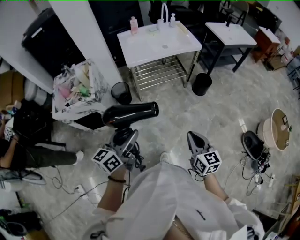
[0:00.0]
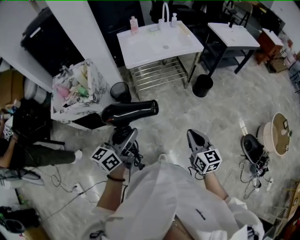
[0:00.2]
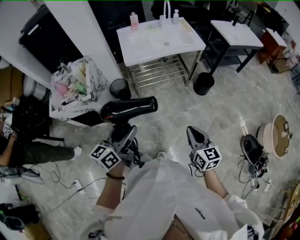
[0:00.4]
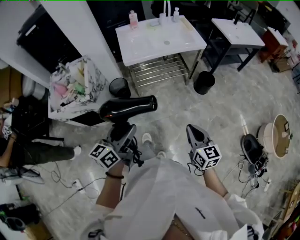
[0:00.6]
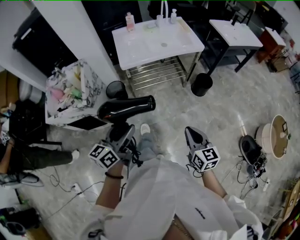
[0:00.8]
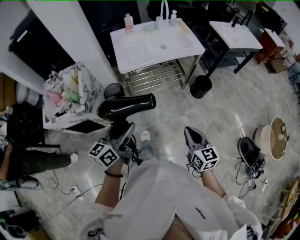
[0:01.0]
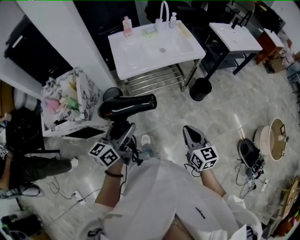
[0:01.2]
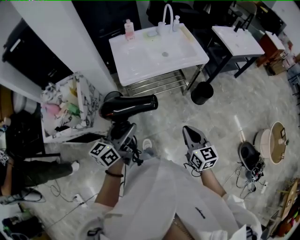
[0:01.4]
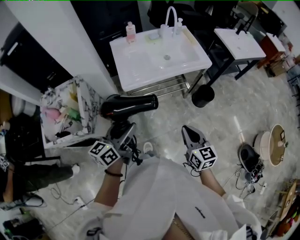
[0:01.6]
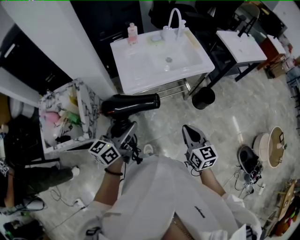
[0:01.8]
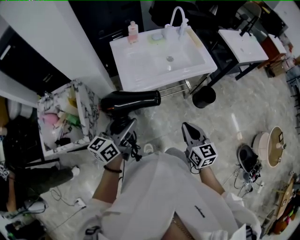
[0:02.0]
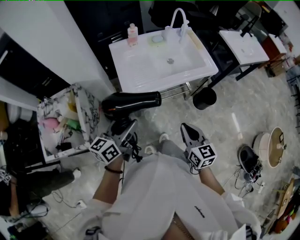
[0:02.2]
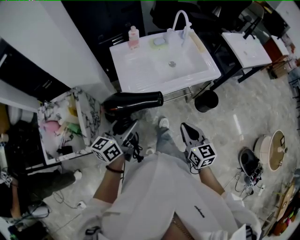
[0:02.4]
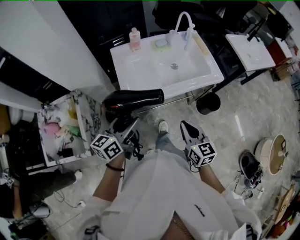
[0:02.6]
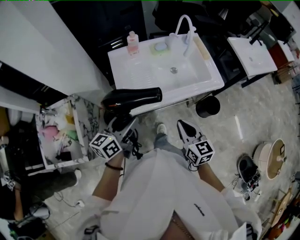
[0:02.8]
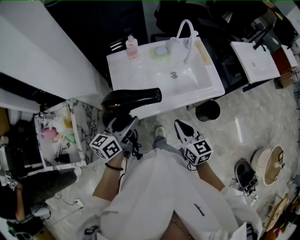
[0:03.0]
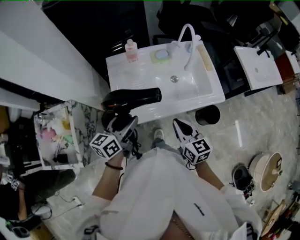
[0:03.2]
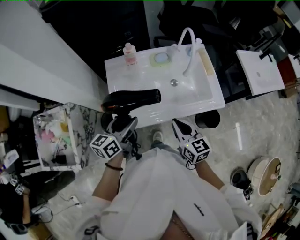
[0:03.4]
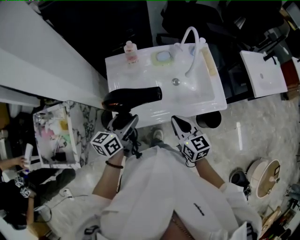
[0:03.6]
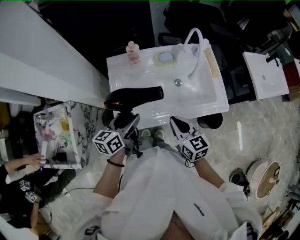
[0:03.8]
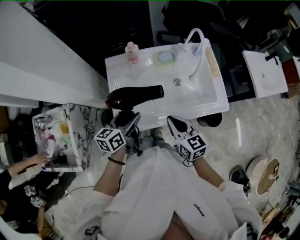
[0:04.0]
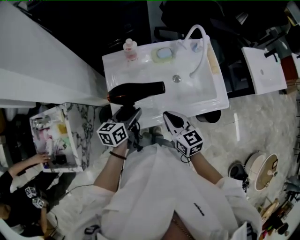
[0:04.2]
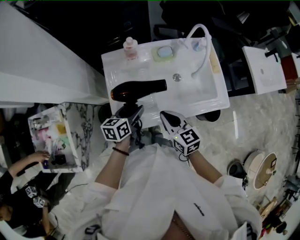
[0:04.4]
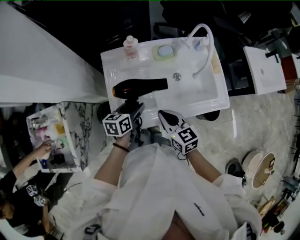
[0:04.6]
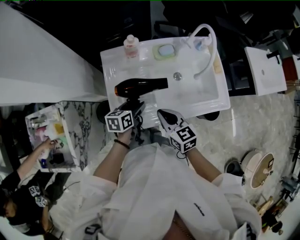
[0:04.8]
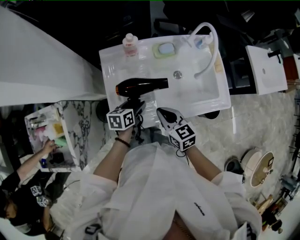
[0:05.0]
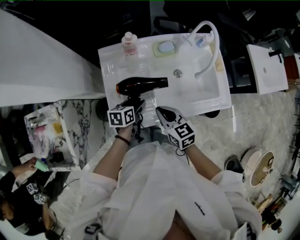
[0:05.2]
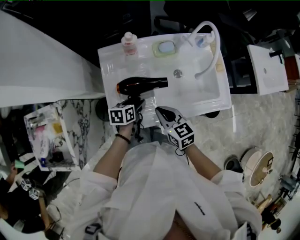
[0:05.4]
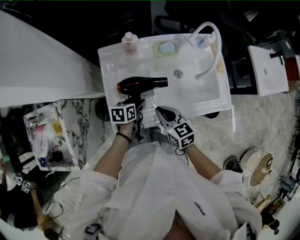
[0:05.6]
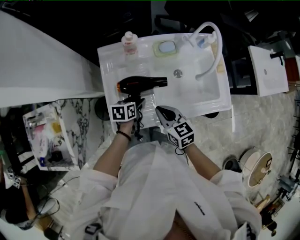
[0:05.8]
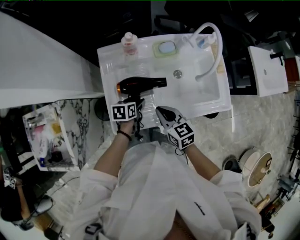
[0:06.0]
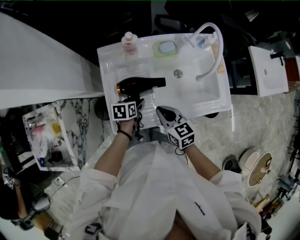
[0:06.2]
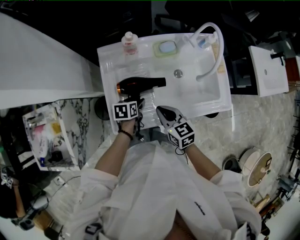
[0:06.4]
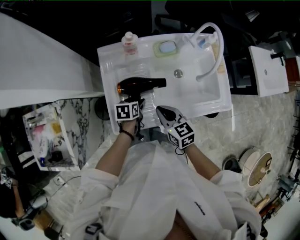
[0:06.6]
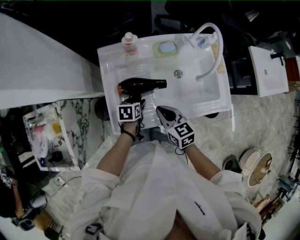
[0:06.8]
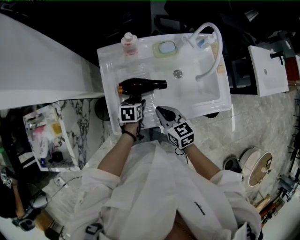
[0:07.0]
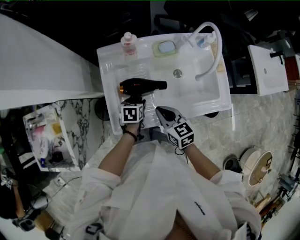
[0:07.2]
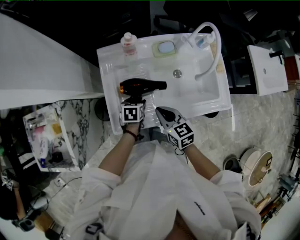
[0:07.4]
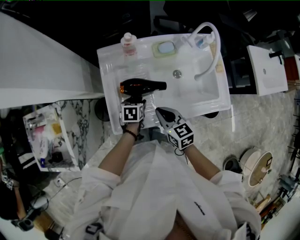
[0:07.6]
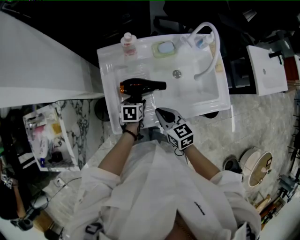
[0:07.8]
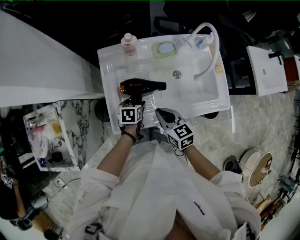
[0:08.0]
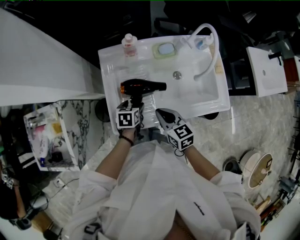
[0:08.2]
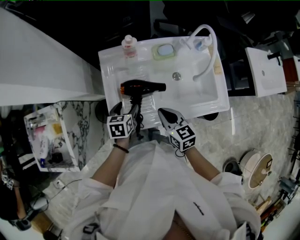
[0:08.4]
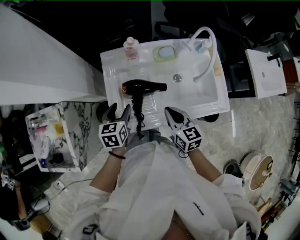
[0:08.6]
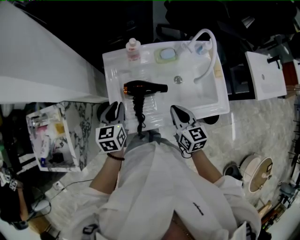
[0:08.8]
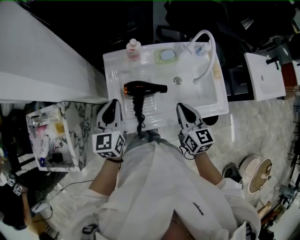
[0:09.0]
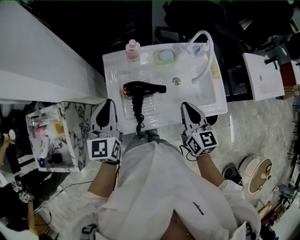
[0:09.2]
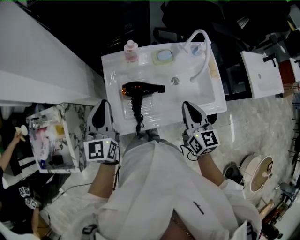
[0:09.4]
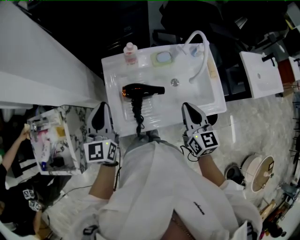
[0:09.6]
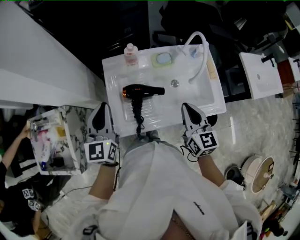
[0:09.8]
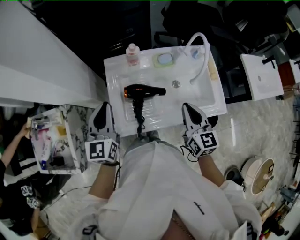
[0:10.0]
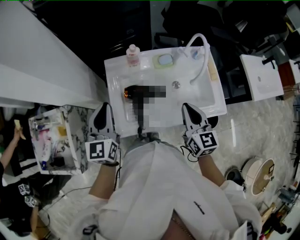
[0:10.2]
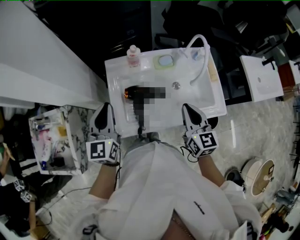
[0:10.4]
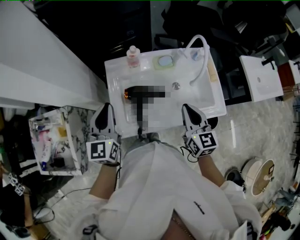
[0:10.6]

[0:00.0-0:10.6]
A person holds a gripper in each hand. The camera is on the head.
0:00.0 to 0:01.6: The two grippers go about 35 cm forward.
0:01.6 to 0:03.0: The grippers both shift forward by about 30 cm.
0:03.0 to 0:04.6: The right gripper moves forward, some 15 cm; the left gripper shifts some 25 cm forward and downward, and turns by about 20 degrees.
0:04.6 to 0:06.0: The left gripper moves downward, about 10 cm, while the right gripper moves about 5 cm.
0:06.0 to 0:07.6: The grippers stay close to where they were, moving slightly.
0:07.6 to 0:09.0: The right gripper goes roughly 10 cm upward and to the right, and turns by roughly 20 degrees, while the left gripper moves upward, approximately 25 cm, angles its fingers upward, by about 40 degrees, and closes.
0:09.0 to 0:10.6: The two grippers go about 5 cm upward.

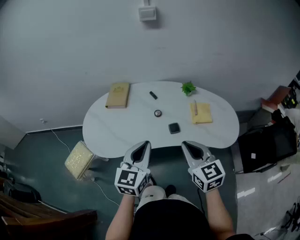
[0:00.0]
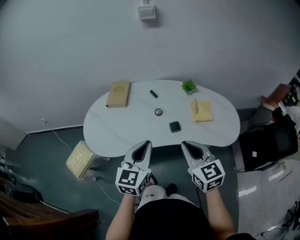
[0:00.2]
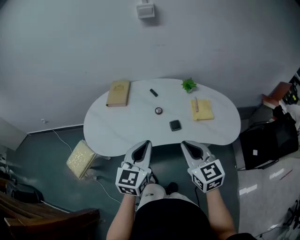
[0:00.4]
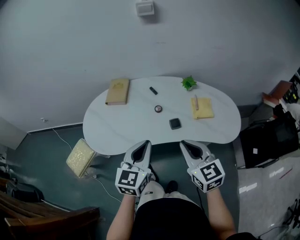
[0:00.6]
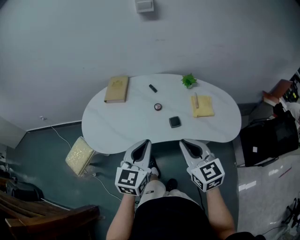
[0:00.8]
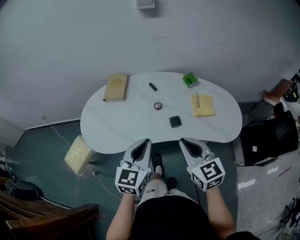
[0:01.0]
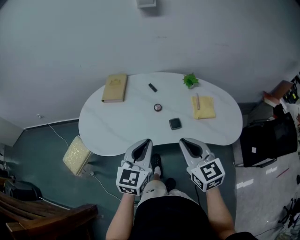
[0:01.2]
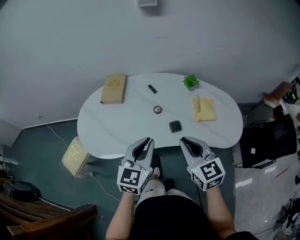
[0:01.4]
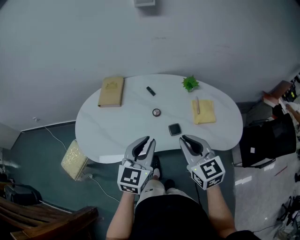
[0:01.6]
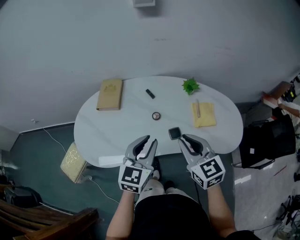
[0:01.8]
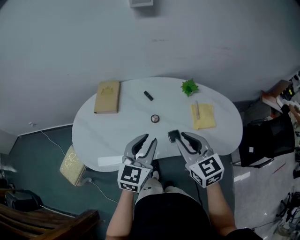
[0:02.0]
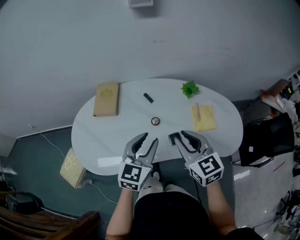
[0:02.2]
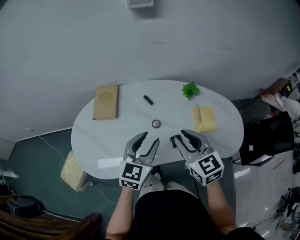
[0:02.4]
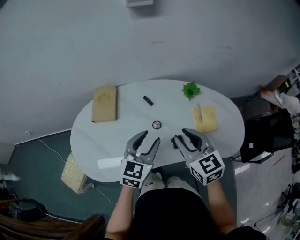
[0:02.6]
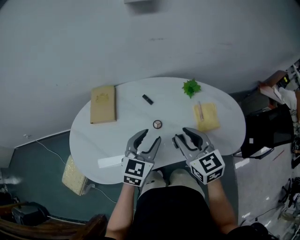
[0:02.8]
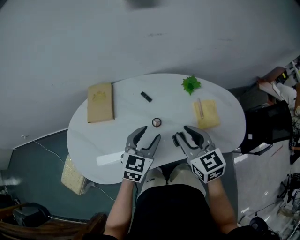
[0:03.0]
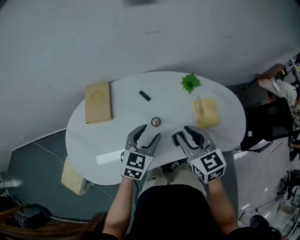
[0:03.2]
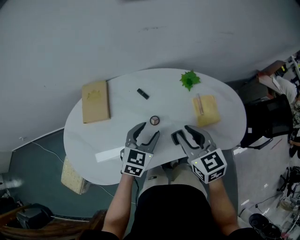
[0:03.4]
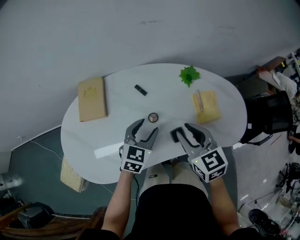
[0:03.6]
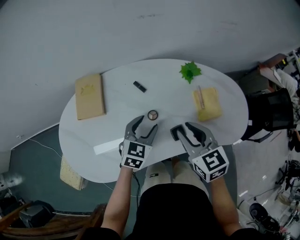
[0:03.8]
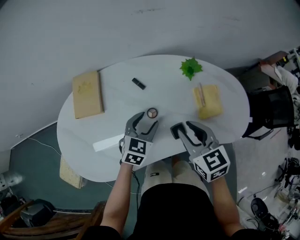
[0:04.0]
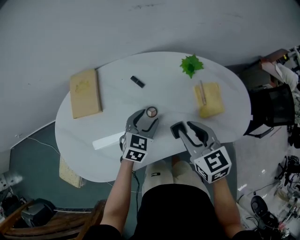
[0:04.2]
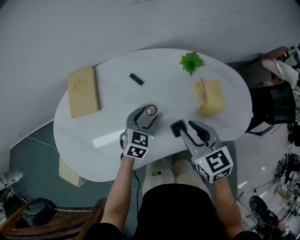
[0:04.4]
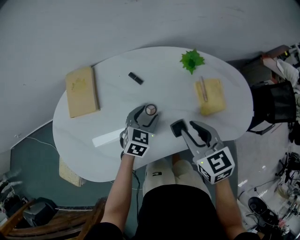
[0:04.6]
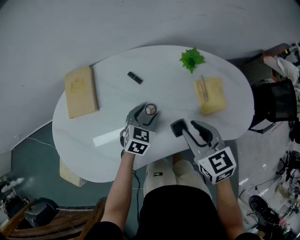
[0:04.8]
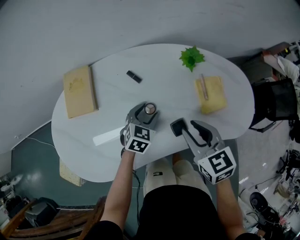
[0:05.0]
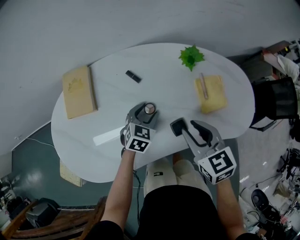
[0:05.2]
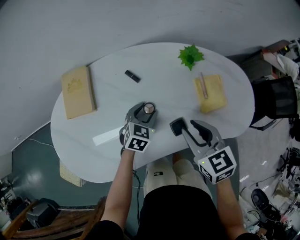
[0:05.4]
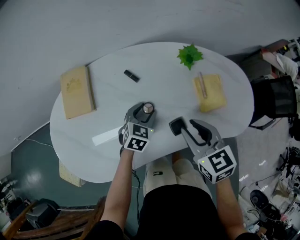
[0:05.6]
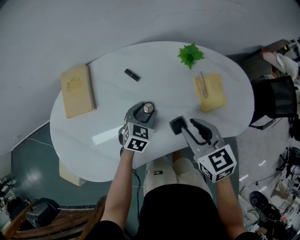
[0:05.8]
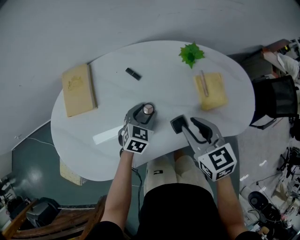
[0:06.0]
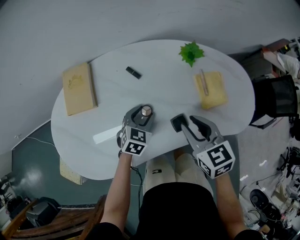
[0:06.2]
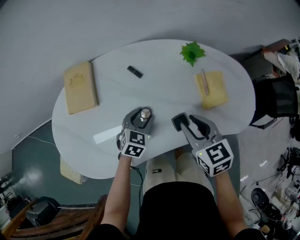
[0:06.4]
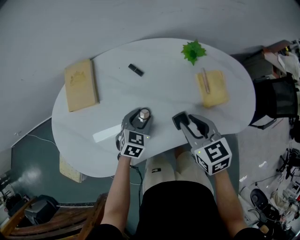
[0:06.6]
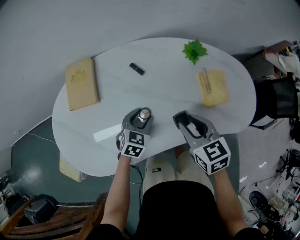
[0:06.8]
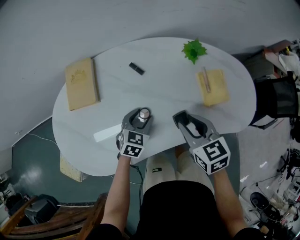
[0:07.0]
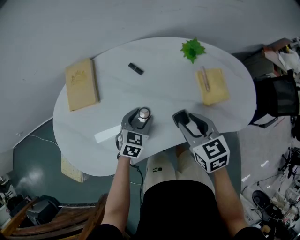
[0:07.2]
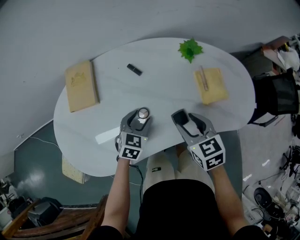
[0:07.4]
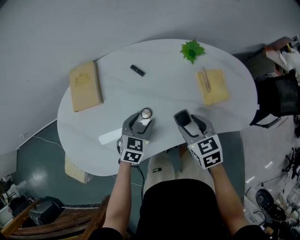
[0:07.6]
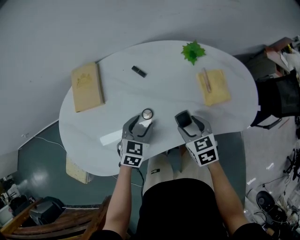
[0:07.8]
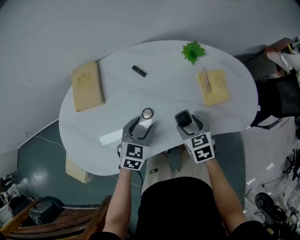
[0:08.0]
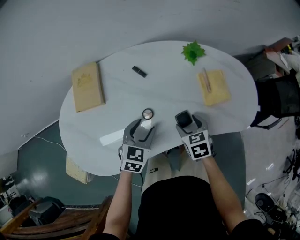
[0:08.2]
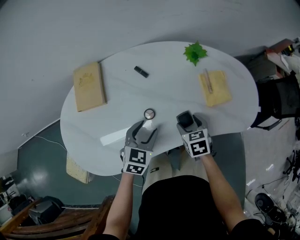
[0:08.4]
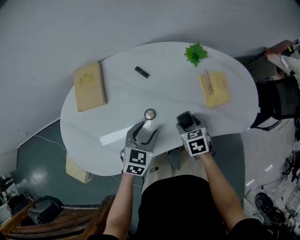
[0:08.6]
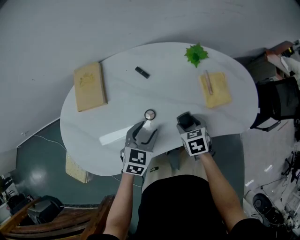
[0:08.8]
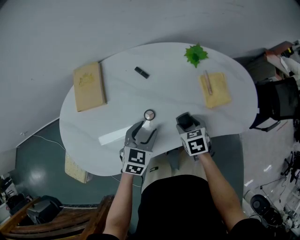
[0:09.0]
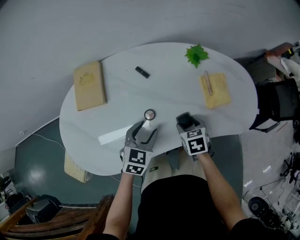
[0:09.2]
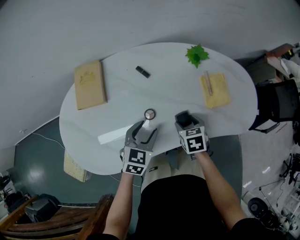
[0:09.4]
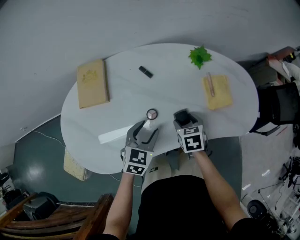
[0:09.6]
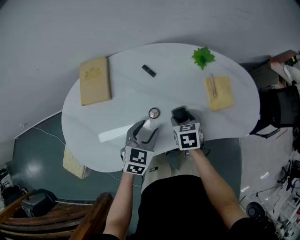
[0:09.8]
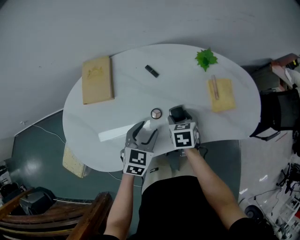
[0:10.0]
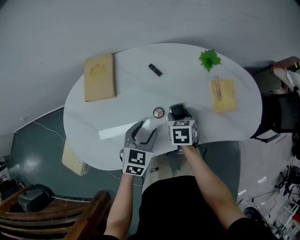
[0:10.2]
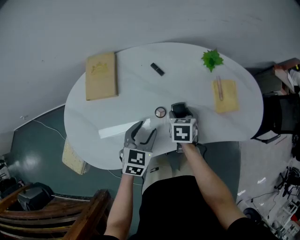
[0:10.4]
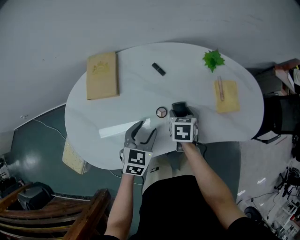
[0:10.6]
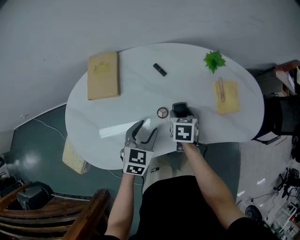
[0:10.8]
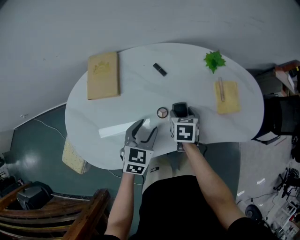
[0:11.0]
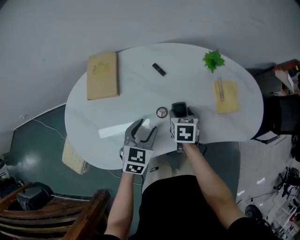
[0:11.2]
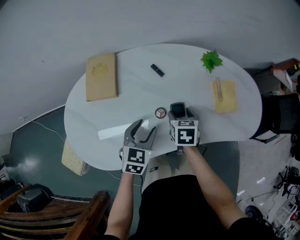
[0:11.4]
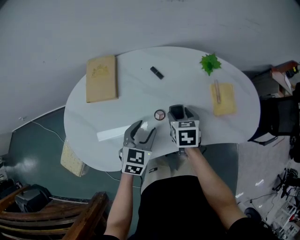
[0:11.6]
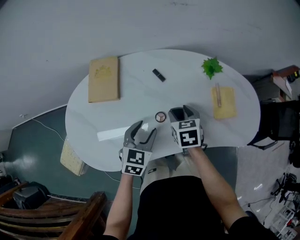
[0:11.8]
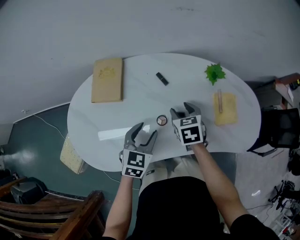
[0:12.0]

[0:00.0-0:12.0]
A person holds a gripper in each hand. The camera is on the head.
0:00.0 to 0:01.6: Both grippers move forward, some 10 cm.
0:01.6 to 0:03.0: The right gripper is displaced forward by roughly 15 cm. The left gripper moves forward and downward, approximately 15 cm, and opens.
0:03.0 to 0:04.4: The right gripper travels downward by roughly 5 cm, while the left gripper shifts roughly 15 cm downward.
0:04.4 to 0:06.0: The grippers make only small movements.
0:06.0 to 0:07.6: The right gripper moves downward, some 5 cm; the left gripper travels backward by about 5 cm.
0:07.6 to 0:09.0: The right gripper goes about 10 cm downward. The left gripper shifts by some 5 cm.
0:09.0 to 0:10.4: The right gripper moves to the left, approximately 10 cm.
0:10.4 to 0:12.0: The right gripper heads upward, covering roughly 5 cm, and swivels some 20 degrees.

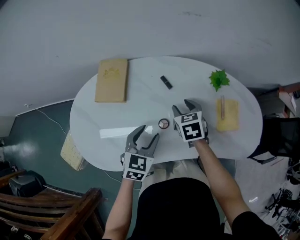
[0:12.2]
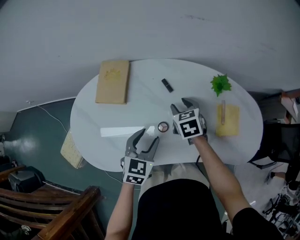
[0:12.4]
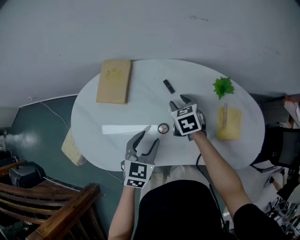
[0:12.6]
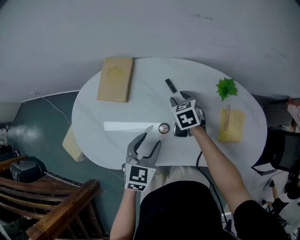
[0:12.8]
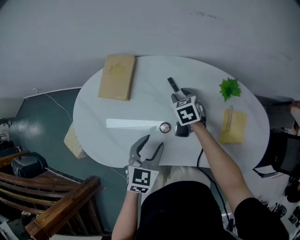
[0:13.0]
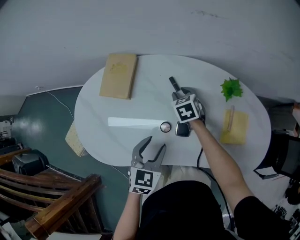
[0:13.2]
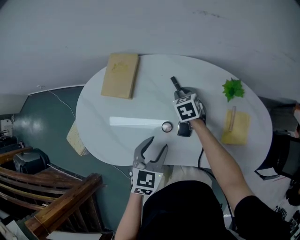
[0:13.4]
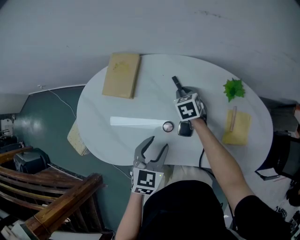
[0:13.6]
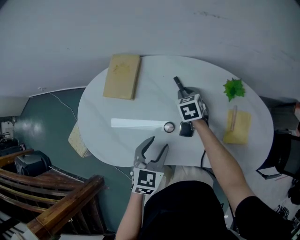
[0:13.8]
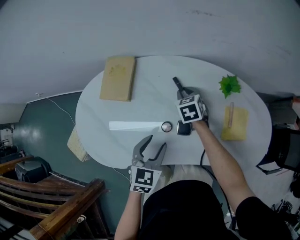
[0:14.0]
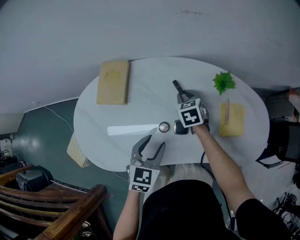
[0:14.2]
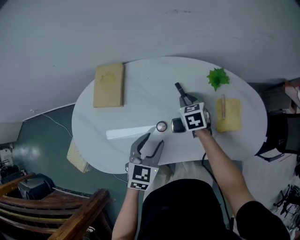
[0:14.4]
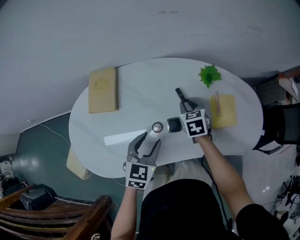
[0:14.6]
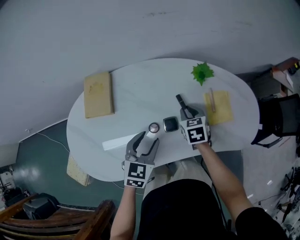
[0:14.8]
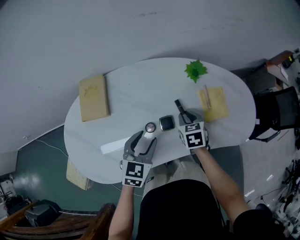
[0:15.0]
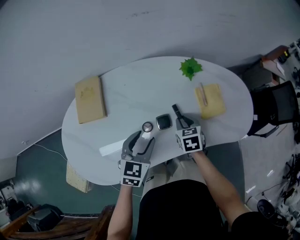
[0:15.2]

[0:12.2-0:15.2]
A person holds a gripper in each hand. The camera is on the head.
0:12.2 to 0:13.8: The right gripper goes approximately 10 cm forward and downward, and closes.
0:13.8 to 0:15.2: The left gripper rotates some 20 degrees. Meanwhile the right gripper moves backward and to the right, about 20 cm, and turns by some 30 degrees.
